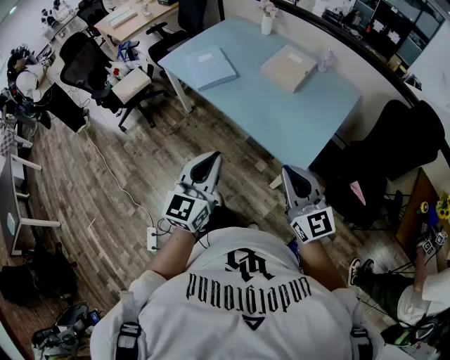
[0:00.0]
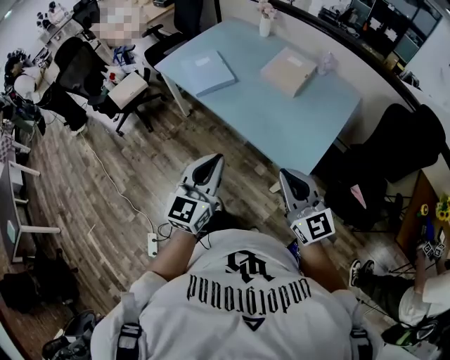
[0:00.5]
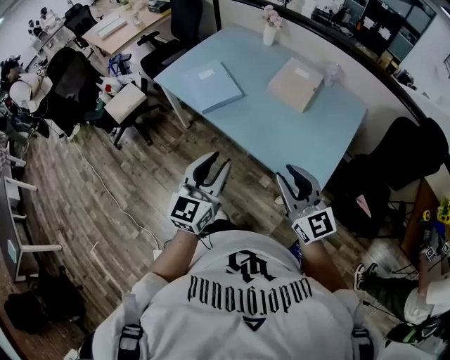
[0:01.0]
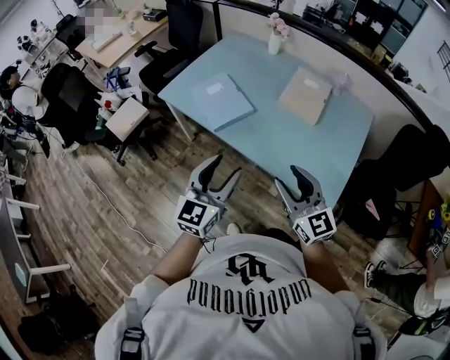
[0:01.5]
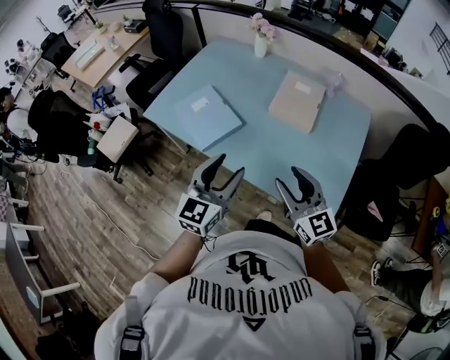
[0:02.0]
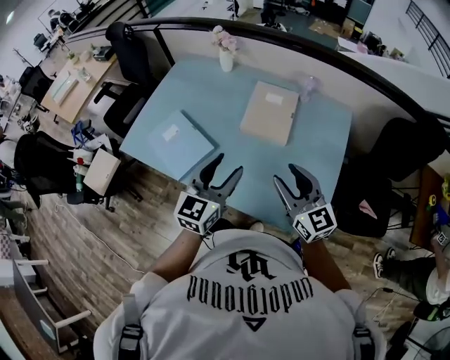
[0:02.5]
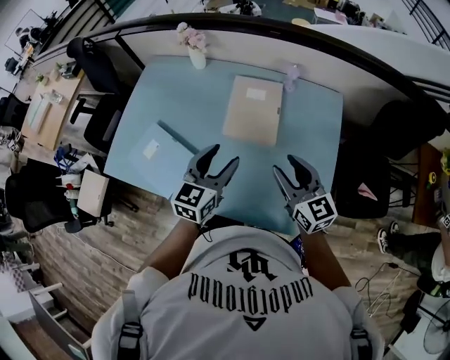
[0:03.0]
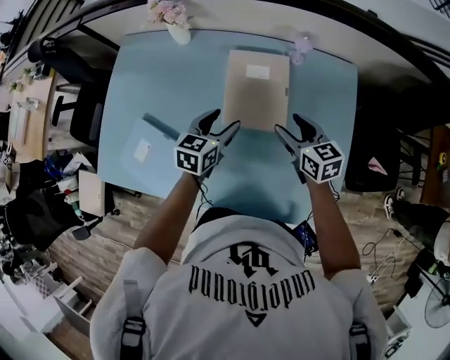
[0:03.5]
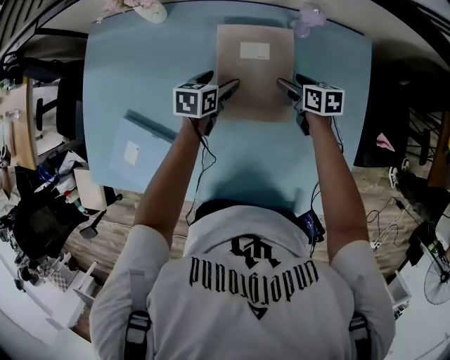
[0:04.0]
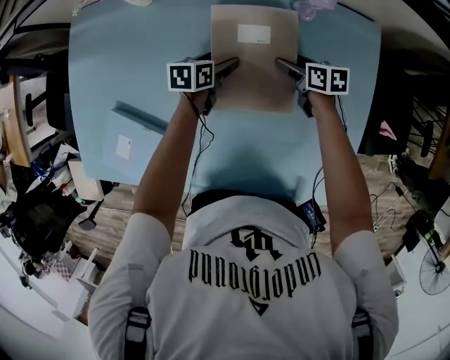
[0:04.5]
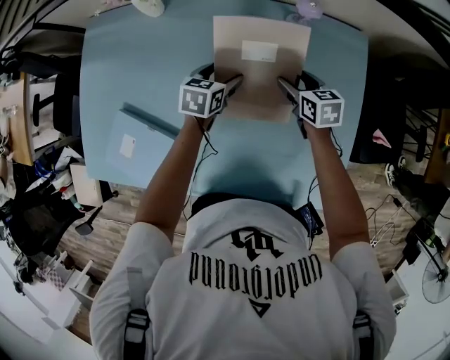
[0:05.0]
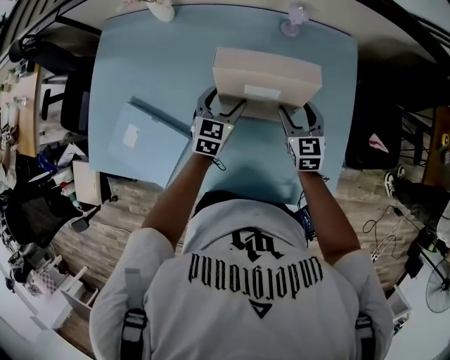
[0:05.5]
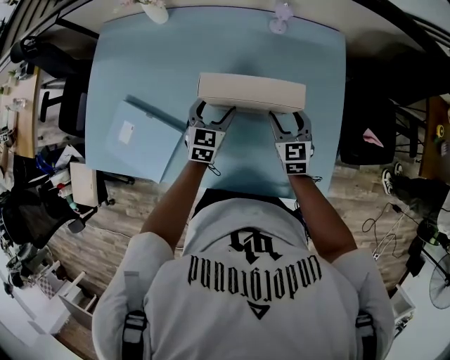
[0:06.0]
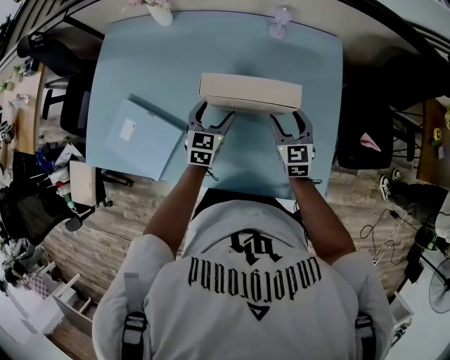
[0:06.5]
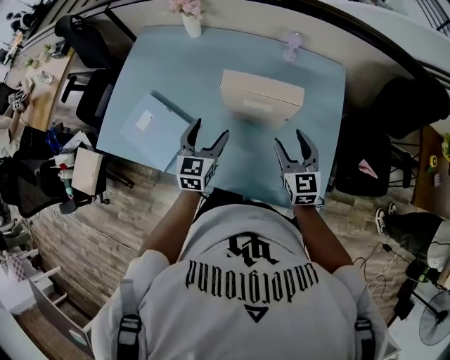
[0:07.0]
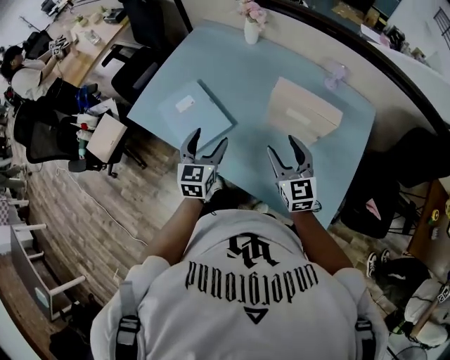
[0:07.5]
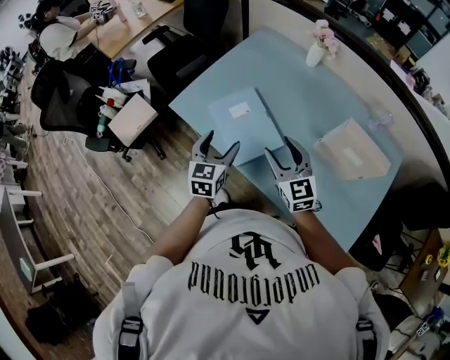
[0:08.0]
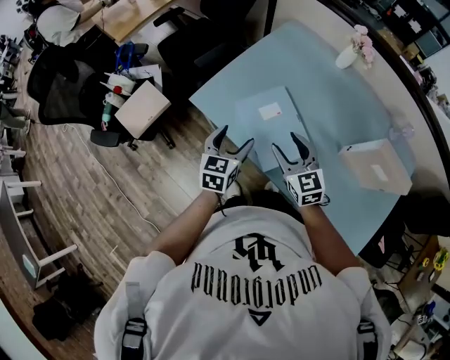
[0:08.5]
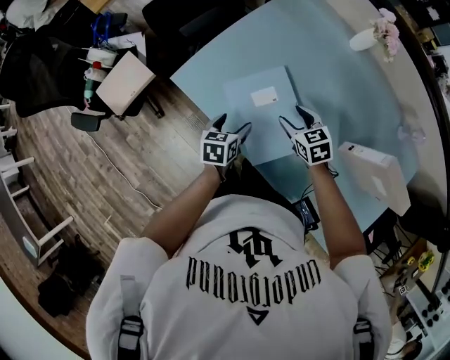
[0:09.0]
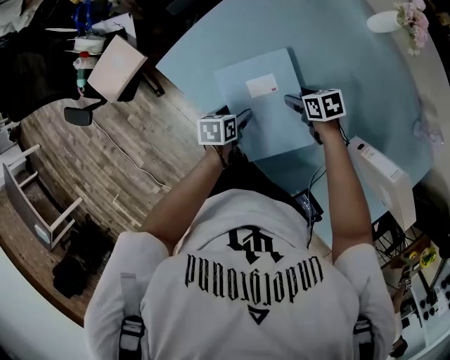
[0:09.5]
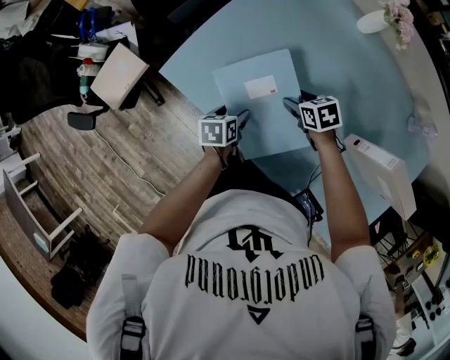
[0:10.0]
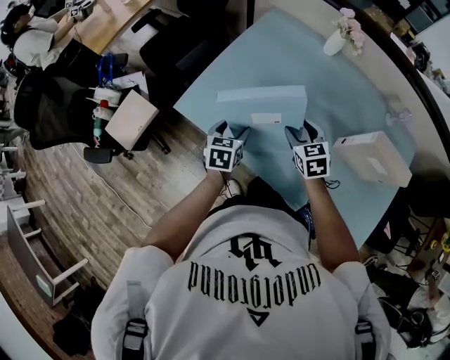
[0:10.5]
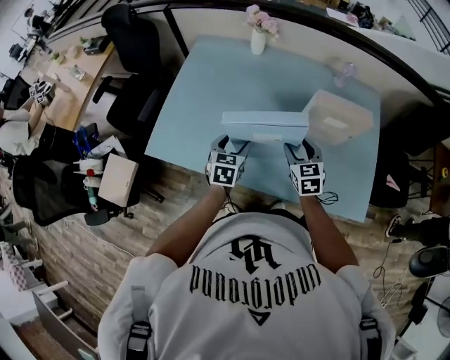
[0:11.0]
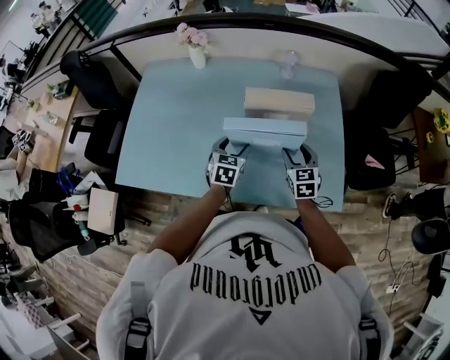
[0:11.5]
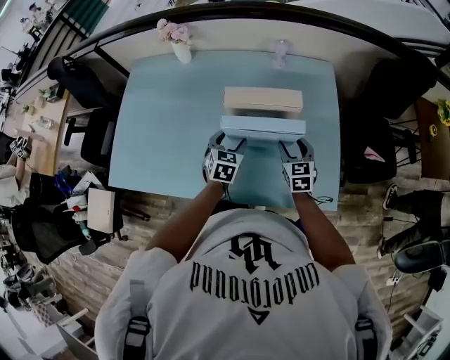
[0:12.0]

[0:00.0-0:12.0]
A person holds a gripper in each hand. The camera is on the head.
0:00.0 to 0:02.0: The two grippers go roughly 30 cm forward. The right gripper opens up. Meanwhile the left gripper opens its fingers.
0:02.0 to 0:04.0: The pair of grippers is taken forward, approximately 50 cm. Both grippers move downward, about 35 cm. The right gripper tilts its fingers about 40 degrees downward. Meanwhile the left gripper tips its fingers downward by some 40 degrees, and opens up.
0:04.0 to 0:06.0: Both grippers travel together backward and upward, about 20 cm. The left gripper rotates roughly 40 degrees; the right gripper swivels some 40 degrees.
0:06.0 to 0:08.0: Both grippers are carried some 40 cm. The right gripper rotates about 40 degrees. The left gripper turns by some 40 degrees.
0:08.0 to 0:10.0: The two grippers go some 30 cm downward and forward. The left gripper tilts its fingers some 30 degrees downward; the right gripper points its fingers roughly 40 degrees further downward.
0:10.0 to 0:12.0: Both grippers are carried some 50 cm. The right gripper rotates approximately 60 degrees. The left gripper rotates around the line of its fingers by some 60 degrees, clockwise from behind.

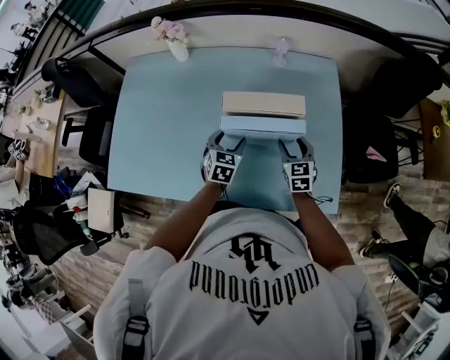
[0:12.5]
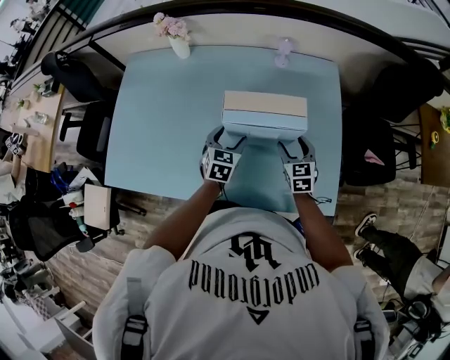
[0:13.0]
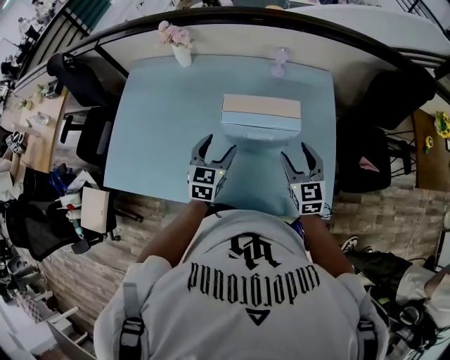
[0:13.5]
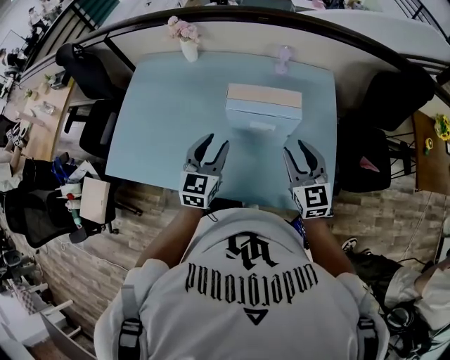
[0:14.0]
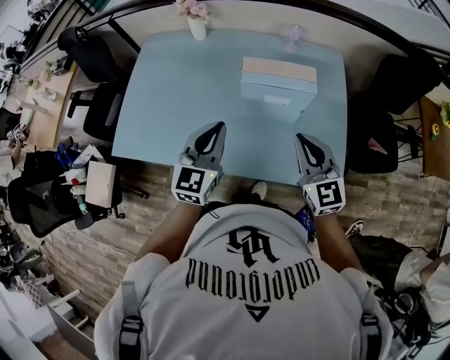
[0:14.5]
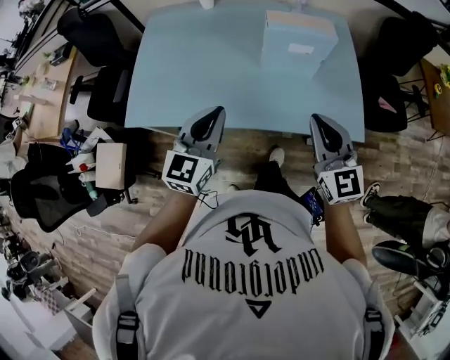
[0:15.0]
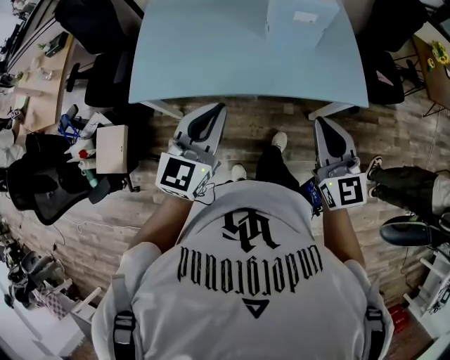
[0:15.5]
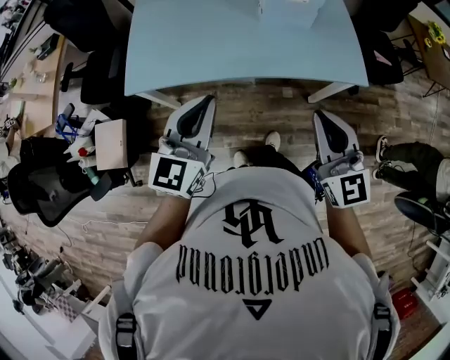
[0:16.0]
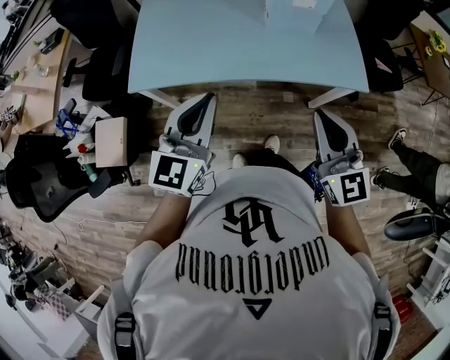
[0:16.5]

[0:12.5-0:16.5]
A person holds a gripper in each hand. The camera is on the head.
0:12.5 to 0:14.5: The grippers both shift upward and backward by roughly 25 cm. The right gripper swivels approximately 30 degrees, and closes its fingers. Meanwhile the left gripper rotates about 30 degrees, and closes its fingers.
0:14.5 to 0:16.5: The grippers both shift backward and to the left by approximately 35 cm.

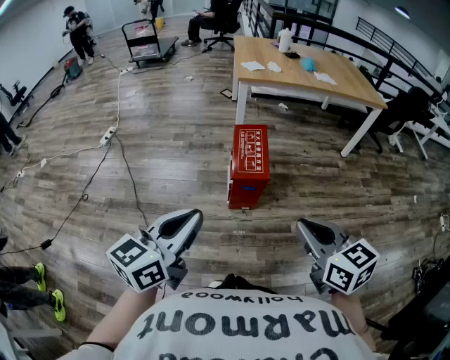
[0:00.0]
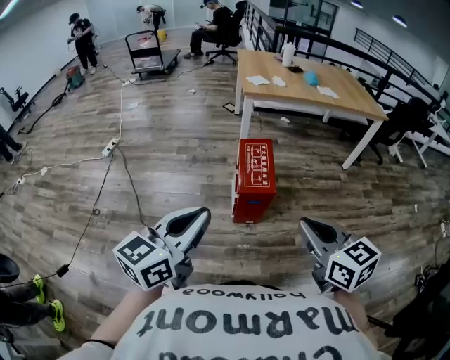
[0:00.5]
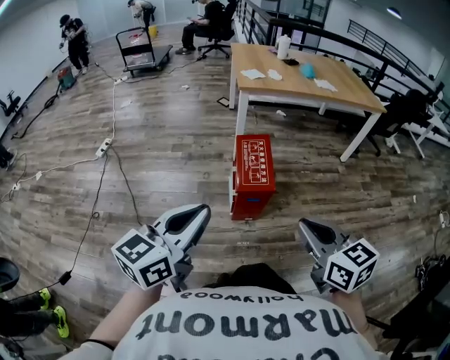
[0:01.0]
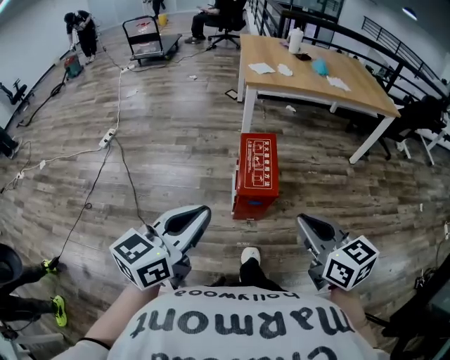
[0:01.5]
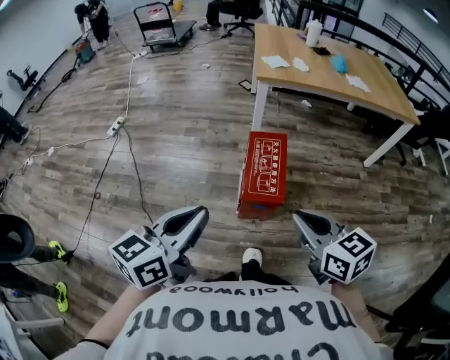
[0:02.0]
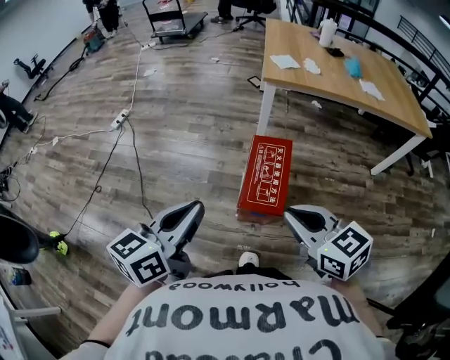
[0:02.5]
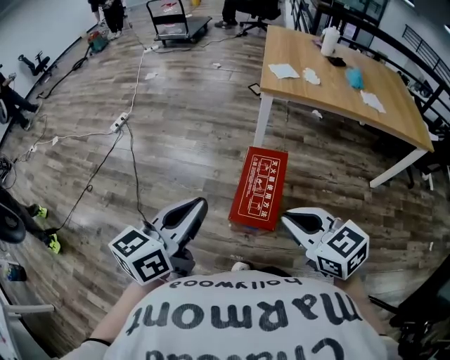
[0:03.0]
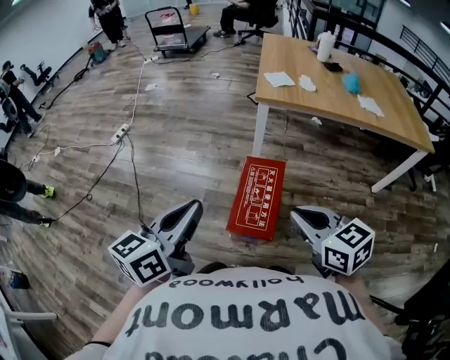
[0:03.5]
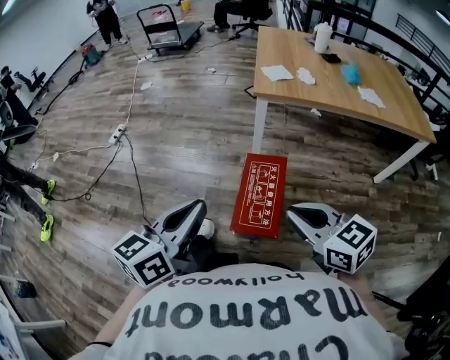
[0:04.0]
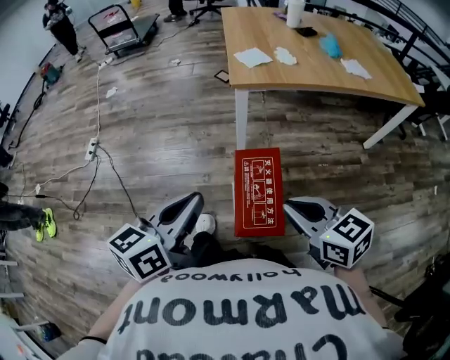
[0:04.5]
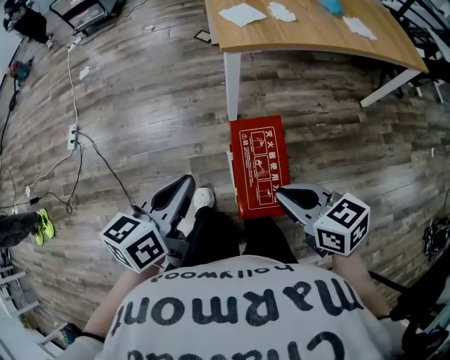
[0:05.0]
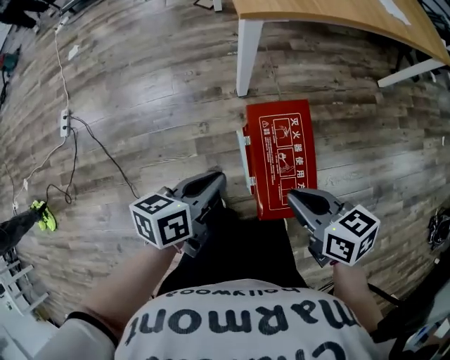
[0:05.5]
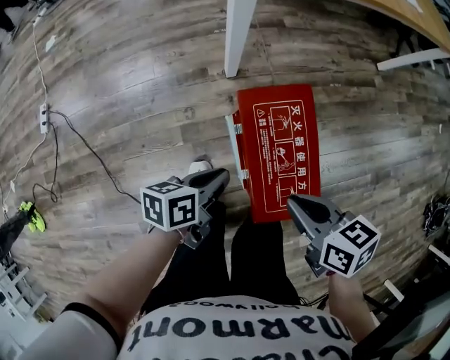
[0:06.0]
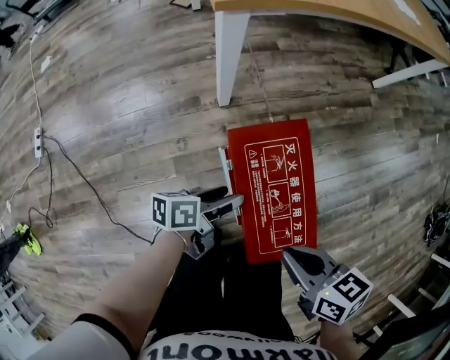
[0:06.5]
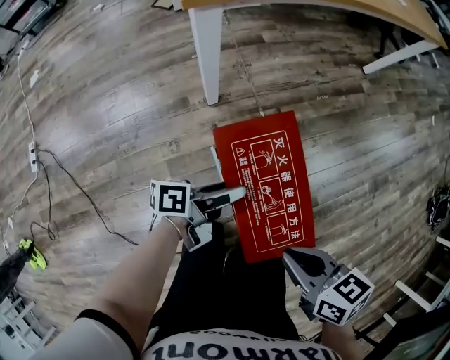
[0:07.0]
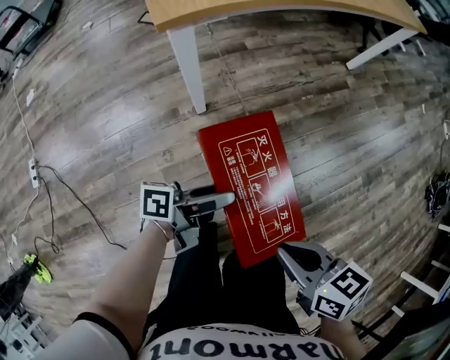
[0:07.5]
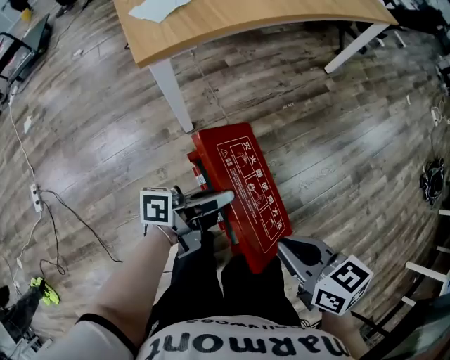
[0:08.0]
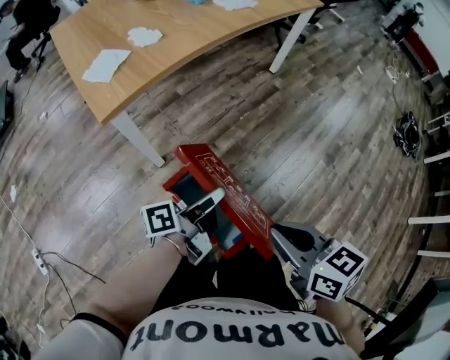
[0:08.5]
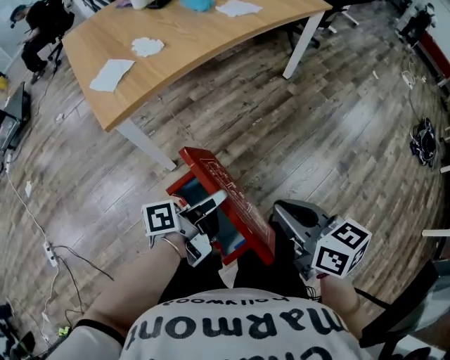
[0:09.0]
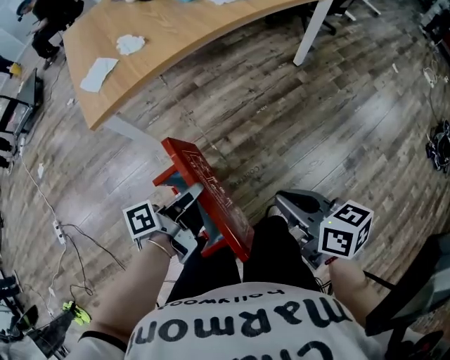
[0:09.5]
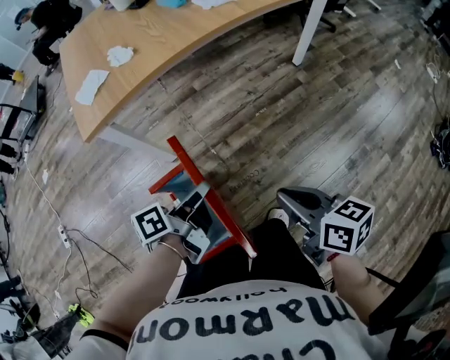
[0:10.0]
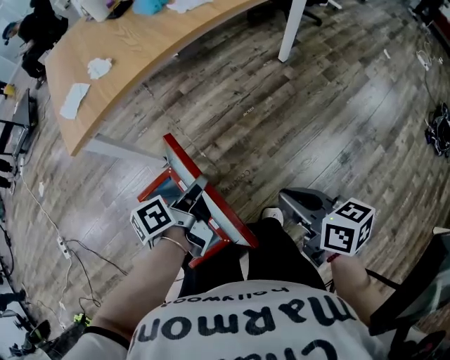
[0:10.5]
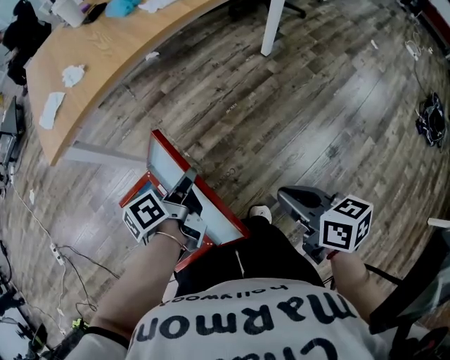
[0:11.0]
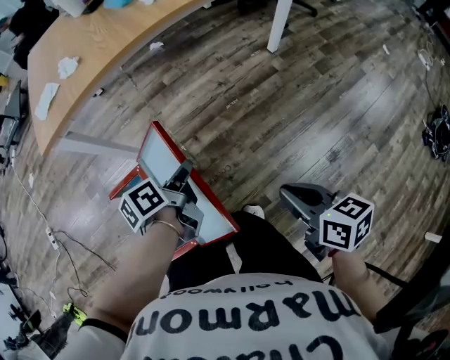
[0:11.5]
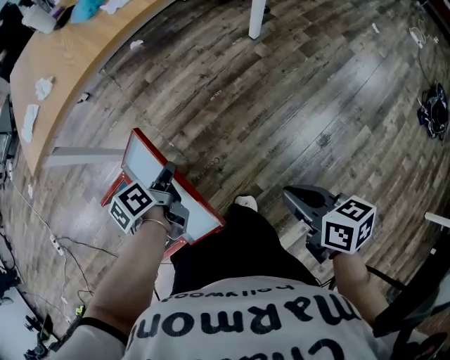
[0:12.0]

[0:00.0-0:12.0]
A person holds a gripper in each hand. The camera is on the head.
0:00.0 to 0:02.0: Both grippers move forward, about 20 cm.
0:02.0 to 0:04.0: The left gripper moves forward and to the right, roughly 15 cm. The right gripper travels forward by approximately 15 cm.
0:04.0 to 0:06.0: Both grippers move downward, approximately 30 cm. The right gripper rolls clockwise, seen from behind, by some 40 degrees; the left gripper turns by some 50 degrees.
0:06.0 to 0:08.0: The left gripper moves upward, to the right and forward, approximately 15 cm, tilts its fingers about 40 degrees upward, and opens, then closes again. The right gripper shifts about 5 cm upward.
0:08.0 to 0:10.0: The right gripper goes approximately 25 cm to the right and forward, while the left gripper moves to the right, forward and upward, approximately 15 cm, and swivels approximately 30 degrees.
0:10.0 to 0:12.0: The right gripper heads to the right, covering roughly 20 cm. Meanwhile the left gripper goes roughly 15 cm to the right, downward and forward, and turns by approximately 30 degrees.
